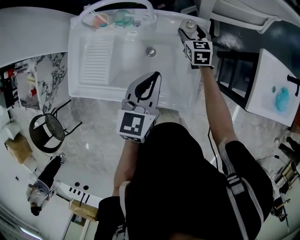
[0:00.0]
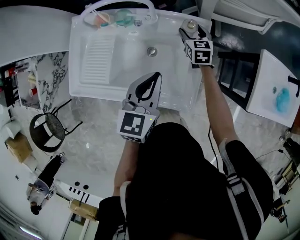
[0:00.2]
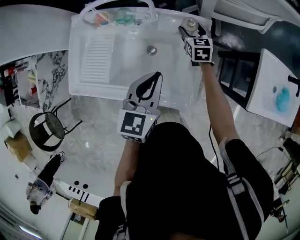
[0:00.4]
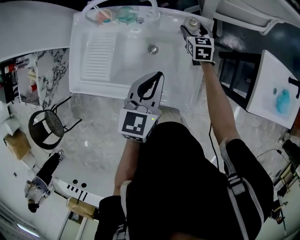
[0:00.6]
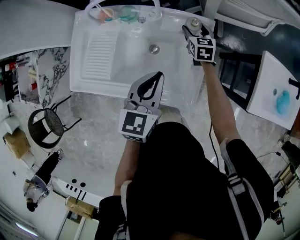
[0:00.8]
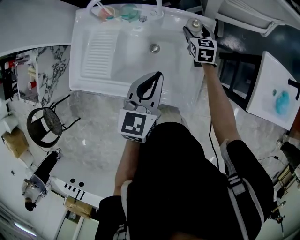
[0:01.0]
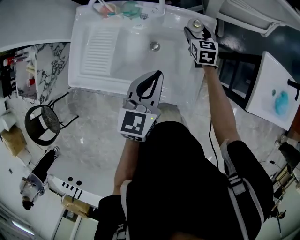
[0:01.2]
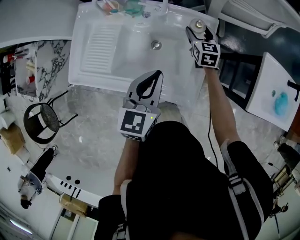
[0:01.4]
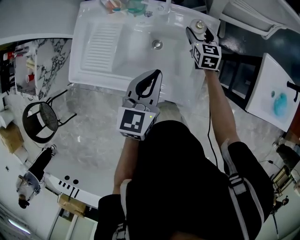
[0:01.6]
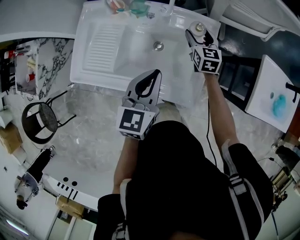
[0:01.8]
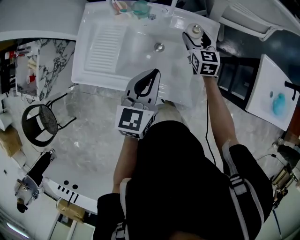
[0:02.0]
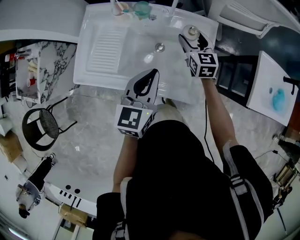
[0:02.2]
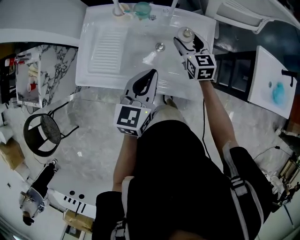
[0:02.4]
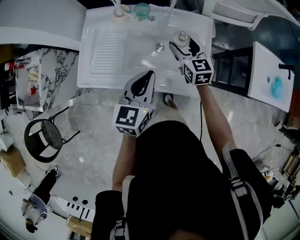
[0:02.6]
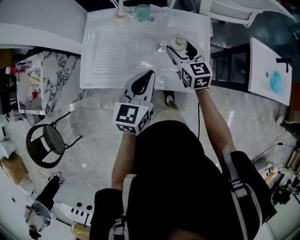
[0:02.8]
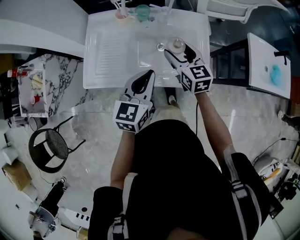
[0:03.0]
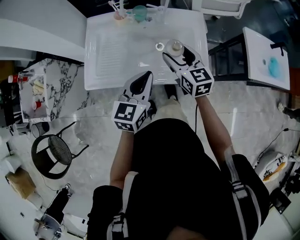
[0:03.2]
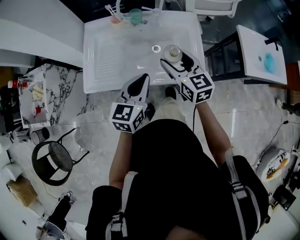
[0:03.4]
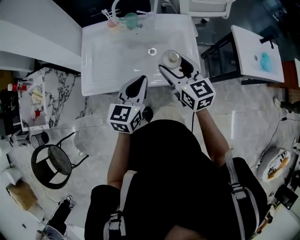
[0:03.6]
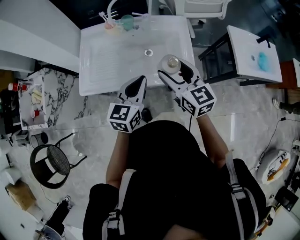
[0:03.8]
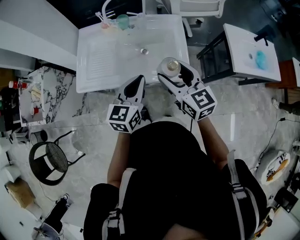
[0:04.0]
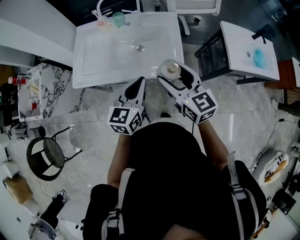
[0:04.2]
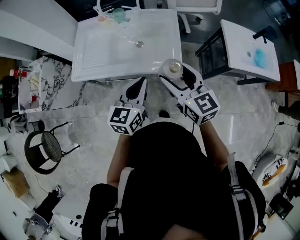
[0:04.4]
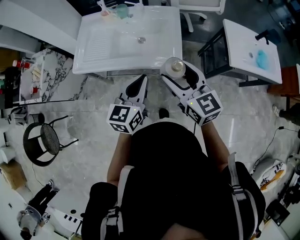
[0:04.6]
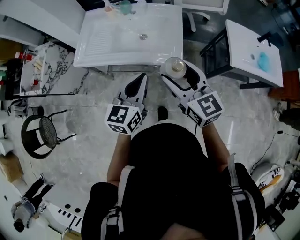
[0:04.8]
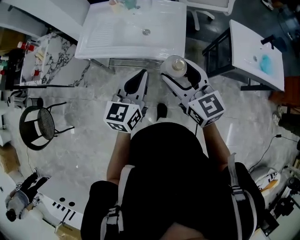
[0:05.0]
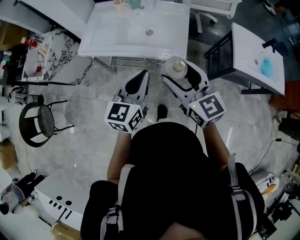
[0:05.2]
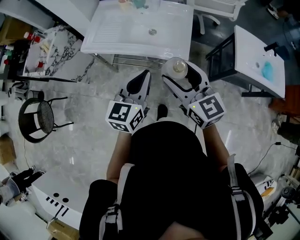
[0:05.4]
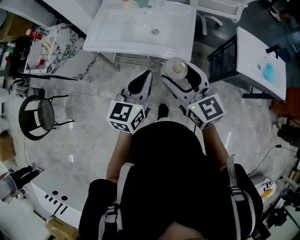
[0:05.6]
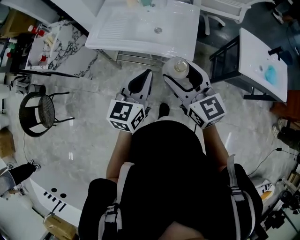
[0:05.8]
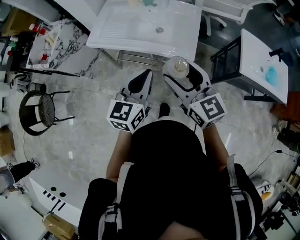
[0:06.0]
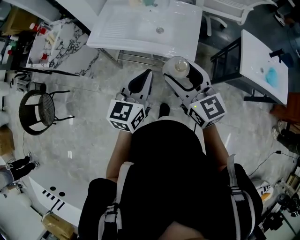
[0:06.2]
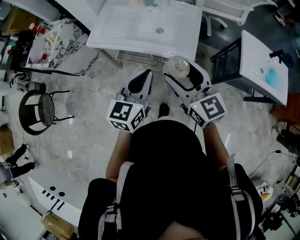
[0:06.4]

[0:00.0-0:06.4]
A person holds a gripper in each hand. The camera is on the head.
0.0 to 1.6 s: The left gripper moves roughly 5 cm.
1.6 to 3.2 s: The left gripper travels to the left and backward by approximately 15 cm. Meanwhile the right gripper heads backward, to the left and upward, covering roughly 30 cm.
3.2 to 4.8 s: The right gripper heads backward, to the right and upward, covering some 30 cm, while the left gripper heads backward and to the right, covering approximately 20 cm.
4.8 to 6.4 s: The left gripper shifts by about 5 cm. The right gripper ends up some 5 cm from where it was.

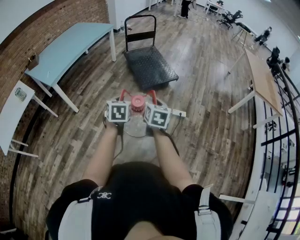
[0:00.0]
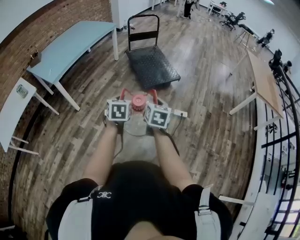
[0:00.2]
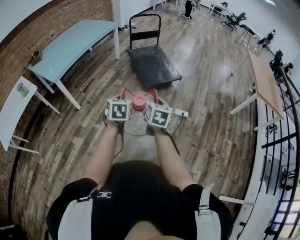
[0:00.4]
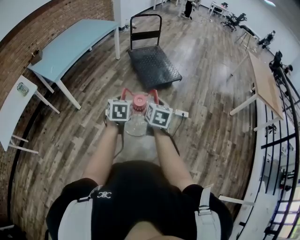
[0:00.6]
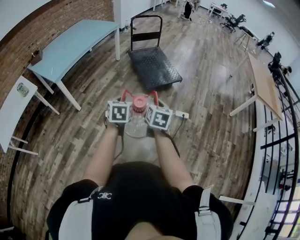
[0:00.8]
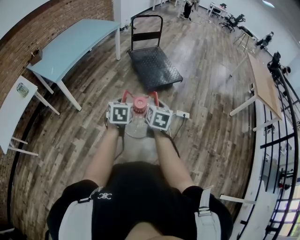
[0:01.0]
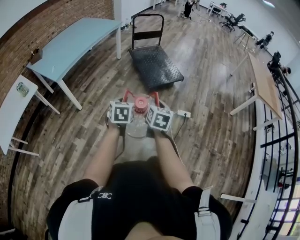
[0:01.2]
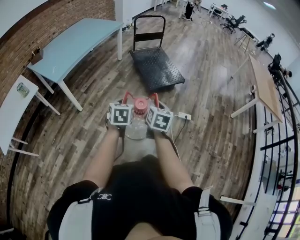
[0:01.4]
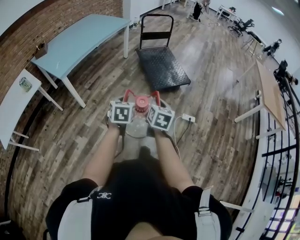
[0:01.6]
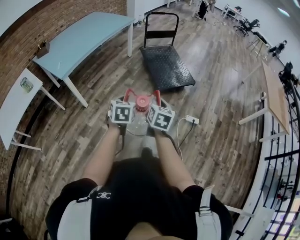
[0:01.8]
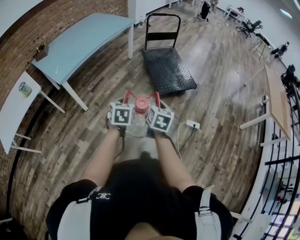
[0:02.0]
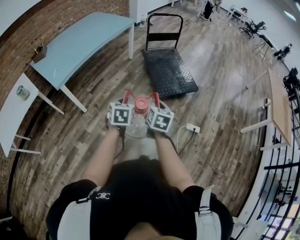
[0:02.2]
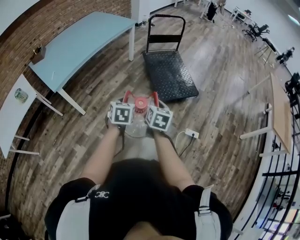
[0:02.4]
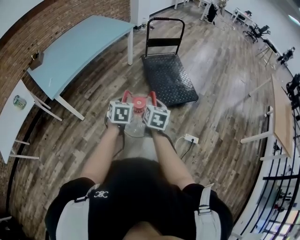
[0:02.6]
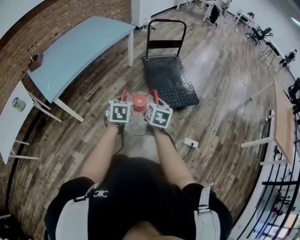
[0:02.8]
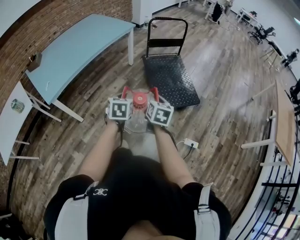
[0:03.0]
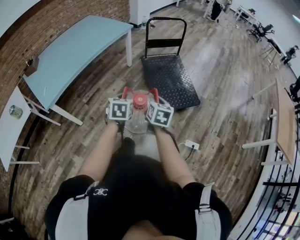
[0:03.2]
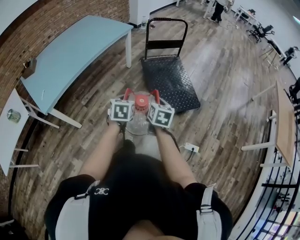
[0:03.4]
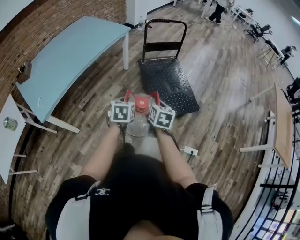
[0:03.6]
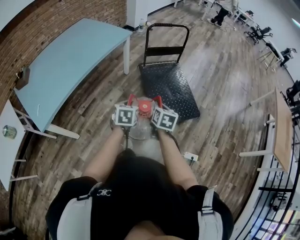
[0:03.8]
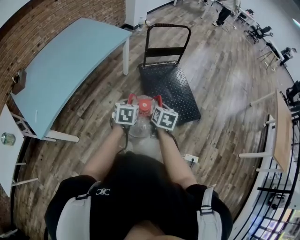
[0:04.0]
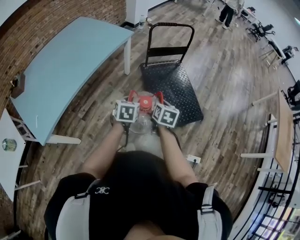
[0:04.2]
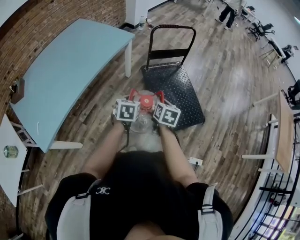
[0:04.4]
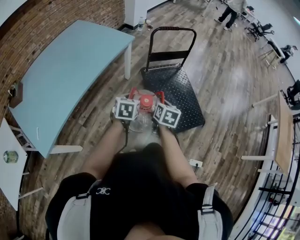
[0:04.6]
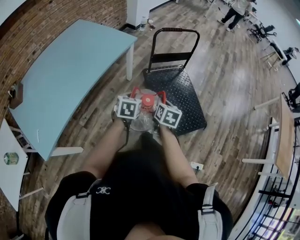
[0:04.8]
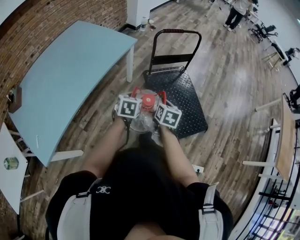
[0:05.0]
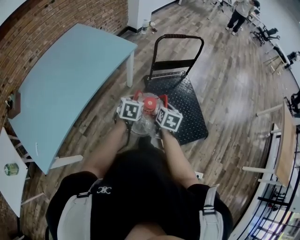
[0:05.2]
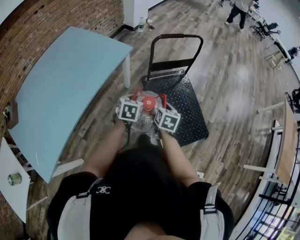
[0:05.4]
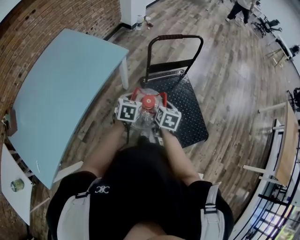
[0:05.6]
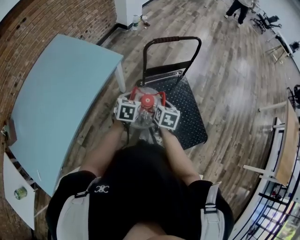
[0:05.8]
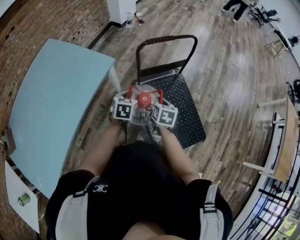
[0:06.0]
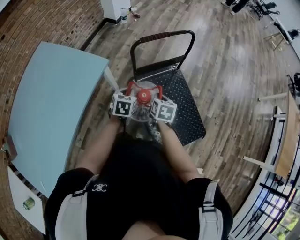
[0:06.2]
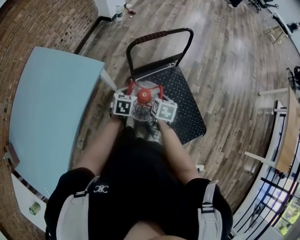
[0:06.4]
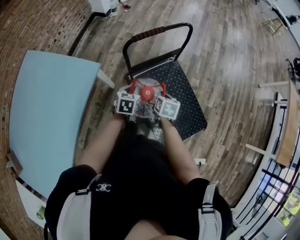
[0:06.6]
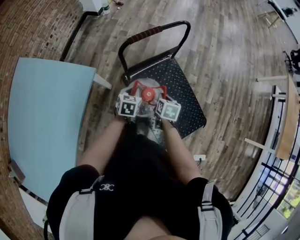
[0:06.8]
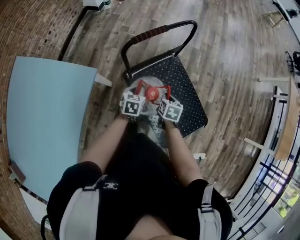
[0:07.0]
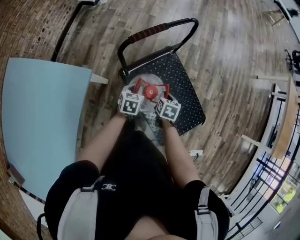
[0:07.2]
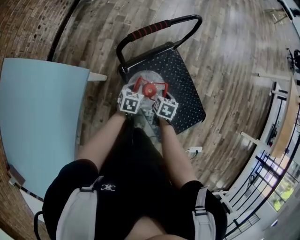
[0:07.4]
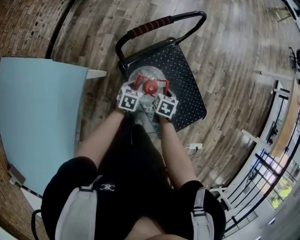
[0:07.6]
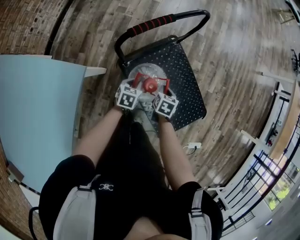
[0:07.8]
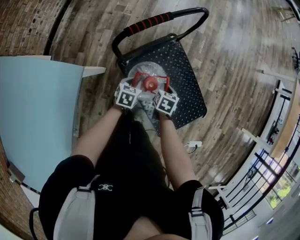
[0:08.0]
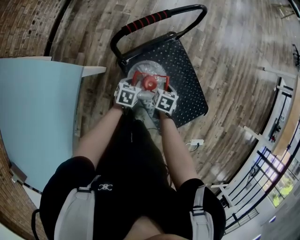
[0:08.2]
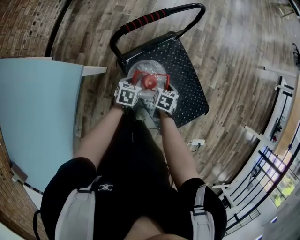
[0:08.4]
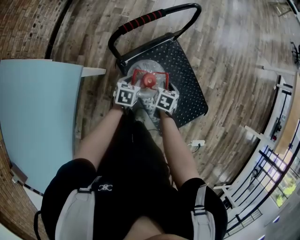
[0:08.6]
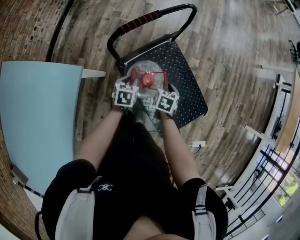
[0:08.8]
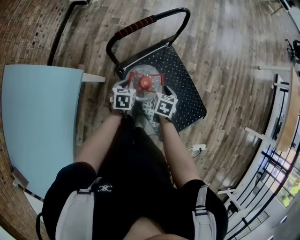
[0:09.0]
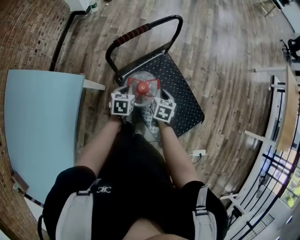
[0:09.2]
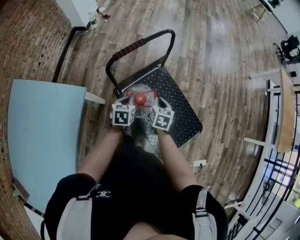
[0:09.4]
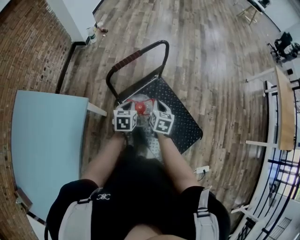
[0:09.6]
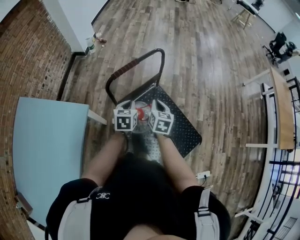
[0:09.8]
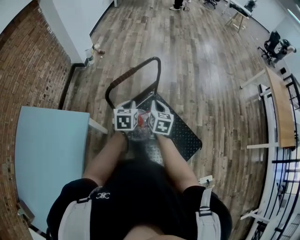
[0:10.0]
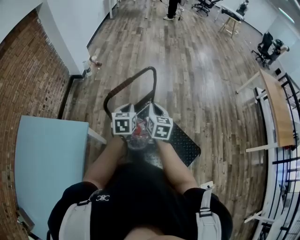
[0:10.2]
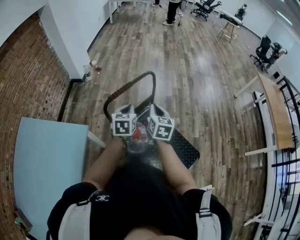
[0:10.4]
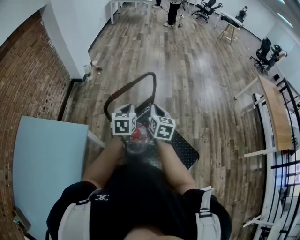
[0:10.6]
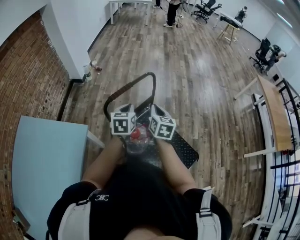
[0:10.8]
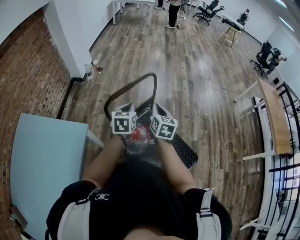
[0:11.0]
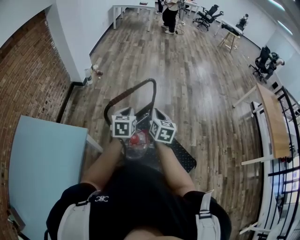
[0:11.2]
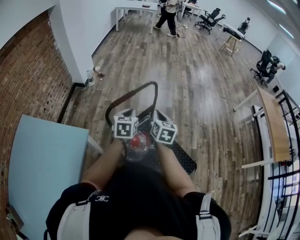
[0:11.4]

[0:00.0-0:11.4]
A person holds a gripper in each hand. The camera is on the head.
0.0 to 1.4 s: The two grippers go roughly 10 cm to the left.
1.4 to 2.8 s: The grippers both shift forward by some 30 cm.
2.8 to 4.2 s: Both grippers travel together forward, some 30 cm.
4.2 to 5.6 s: The grippers both shift forward by approximately 30 cm.
5.6 to 7.2 s: Both grippers move forward and downward, approximately 30 cm. The right gripper changes its angle by about 20 degrees; the left gripper changes its angle by some 20 degrees.
7.2 to 8.6 s: The right gripper ends up approximately 5 cm from where it was, and opens up.
8.6 to 10.0 s: Both grippers travel together upward, roughly 25 cm. The right gripper points its fingers some 30 degrees further upward, and closes. Meanwhile the left gripper swivels about 20 degrees, and closes its fingers.
10.0 to 11.4 s: The grippers both shift upward by some 5 cm.

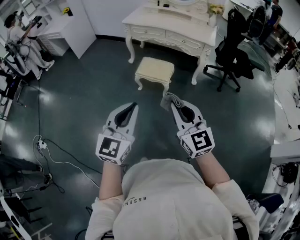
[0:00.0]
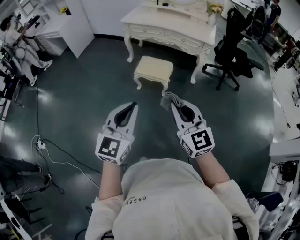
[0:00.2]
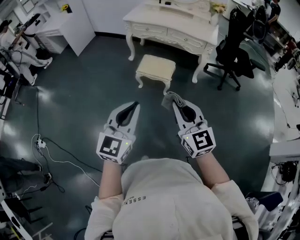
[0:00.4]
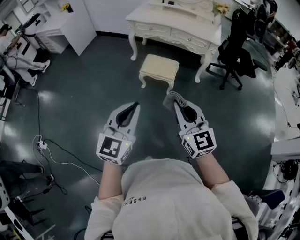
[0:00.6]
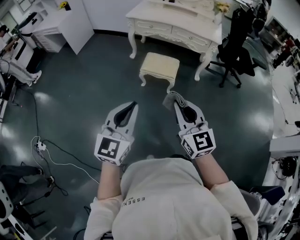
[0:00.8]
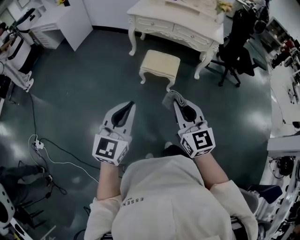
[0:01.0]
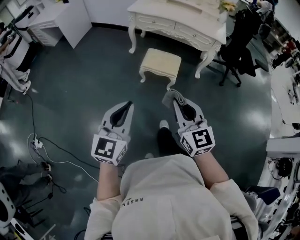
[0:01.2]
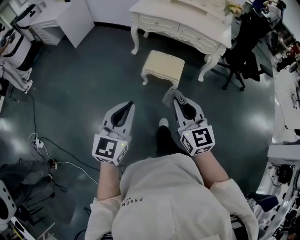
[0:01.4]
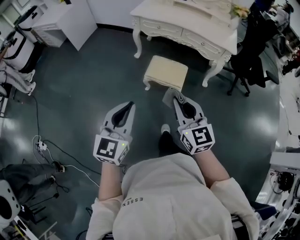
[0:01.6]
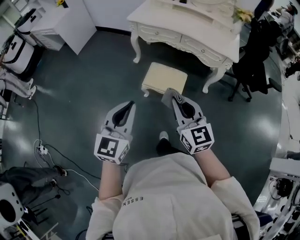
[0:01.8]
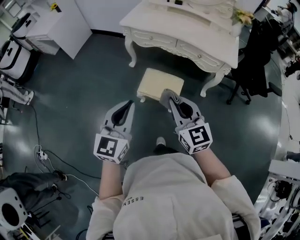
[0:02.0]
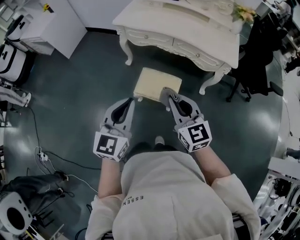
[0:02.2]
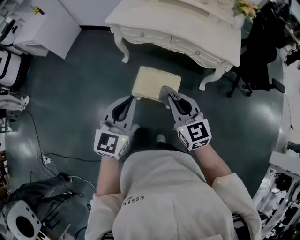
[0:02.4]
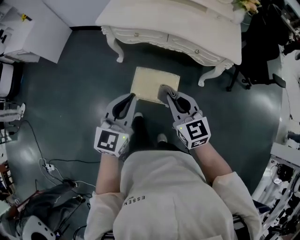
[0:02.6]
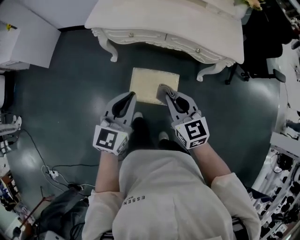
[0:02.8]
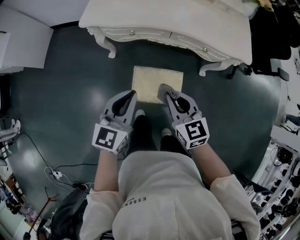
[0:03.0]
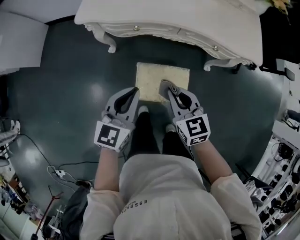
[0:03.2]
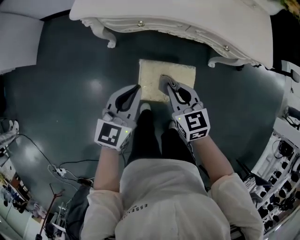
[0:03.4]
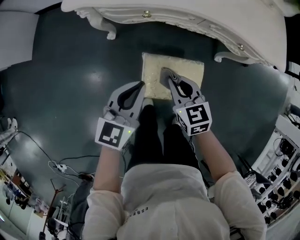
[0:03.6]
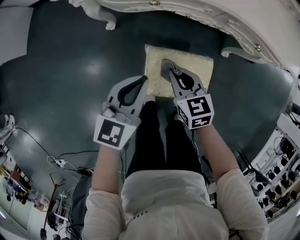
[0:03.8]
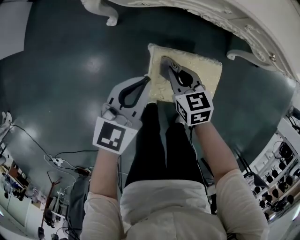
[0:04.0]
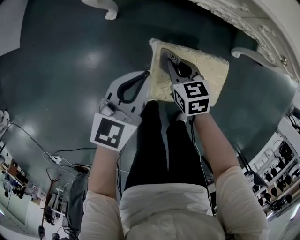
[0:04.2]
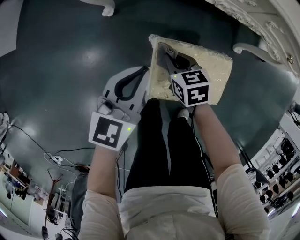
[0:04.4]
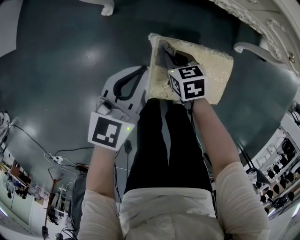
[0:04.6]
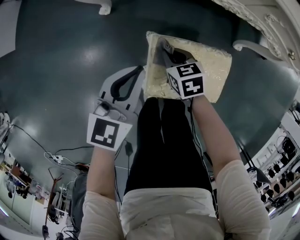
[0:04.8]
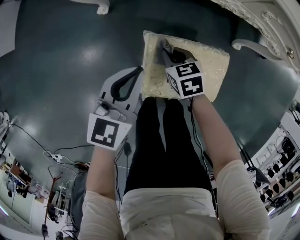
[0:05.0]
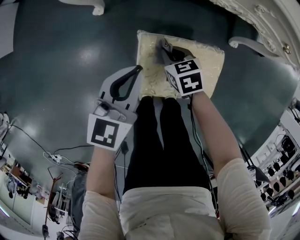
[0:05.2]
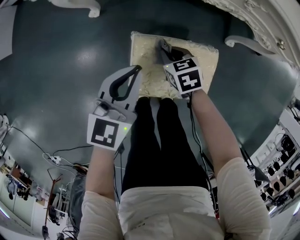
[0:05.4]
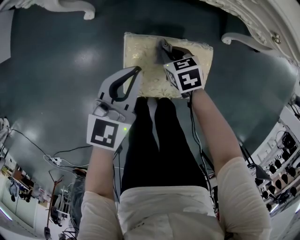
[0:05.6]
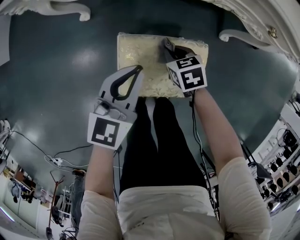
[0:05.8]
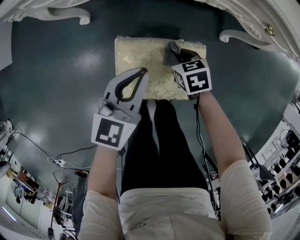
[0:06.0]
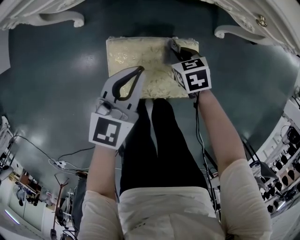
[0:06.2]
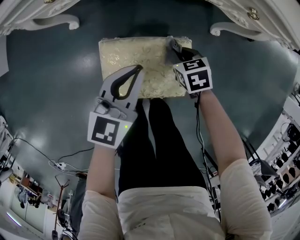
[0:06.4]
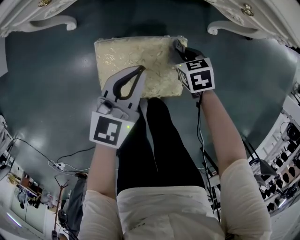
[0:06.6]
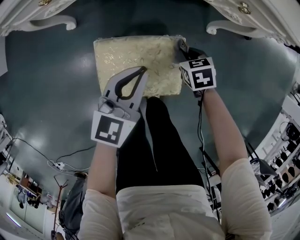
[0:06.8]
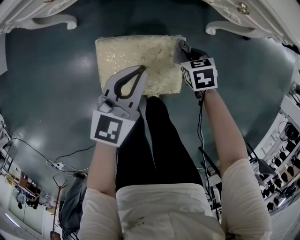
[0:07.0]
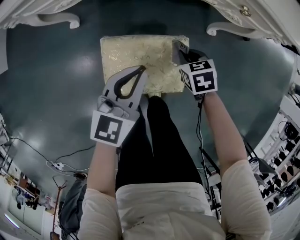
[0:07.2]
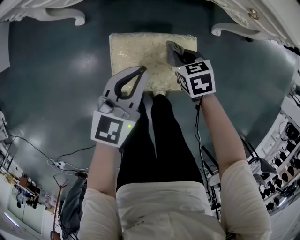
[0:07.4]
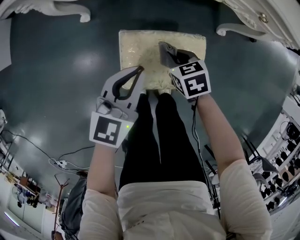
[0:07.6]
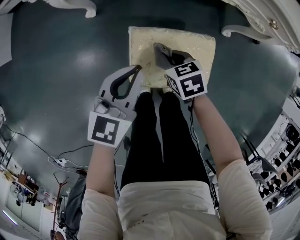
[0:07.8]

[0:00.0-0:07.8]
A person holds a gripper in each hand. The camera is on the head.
0.0 to 1.6 s: The grippers both shift forward and to the left by roughly 25 cm.
1.6 to 3.2 s: Both grippers are carried forward, some 50 cm. The left gripper turns by about 30 degrees. The right gripper moves downward, approximately 20 cm, and swivels roughly 30 degrees.
3.2 to 4.6 s: Both grippers travel together downward, approximately 30 cm. The right gripper changes its angle by about 30 degrees.
4.6 to 6.2 s: Both grippers travel together to the right, about 20 cm.
6.2 to 7.8 s: The right gripper is displaced to the left and backward by approximately 15 cm. Meanwhile the left gripper goes approximately 10 cm to the left.
